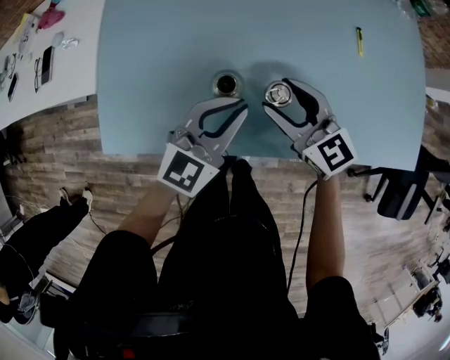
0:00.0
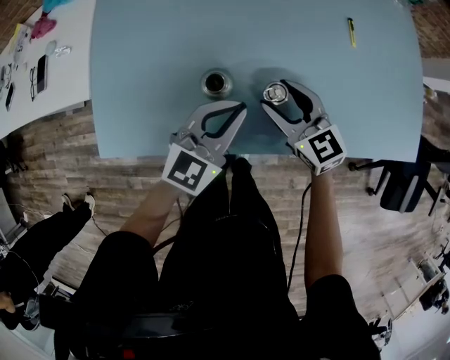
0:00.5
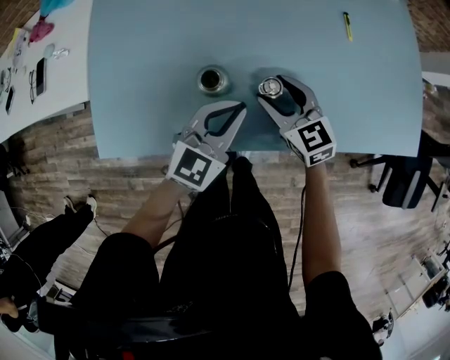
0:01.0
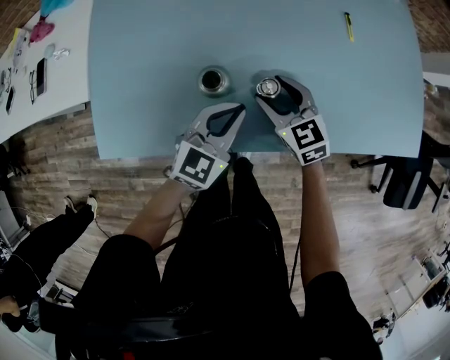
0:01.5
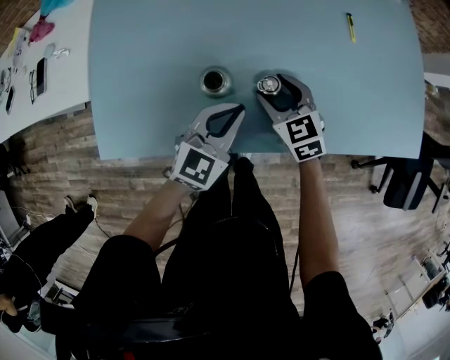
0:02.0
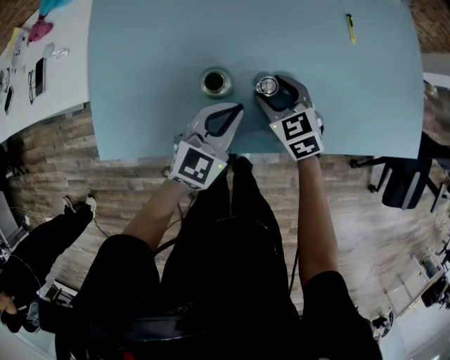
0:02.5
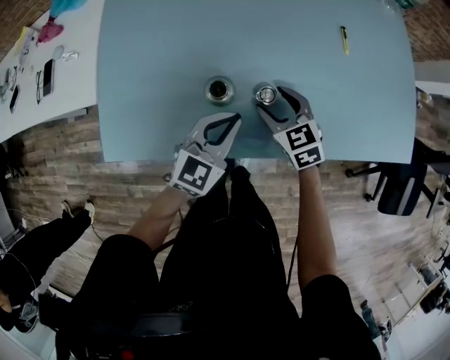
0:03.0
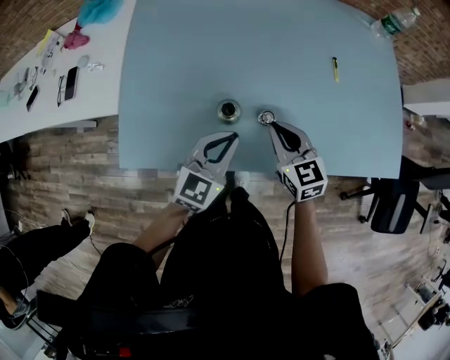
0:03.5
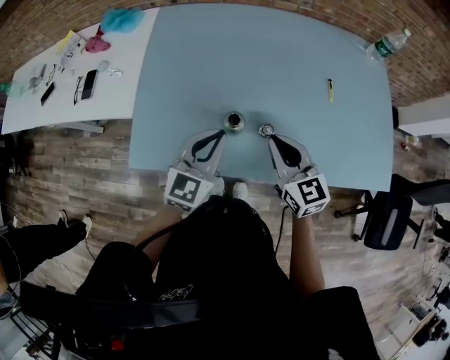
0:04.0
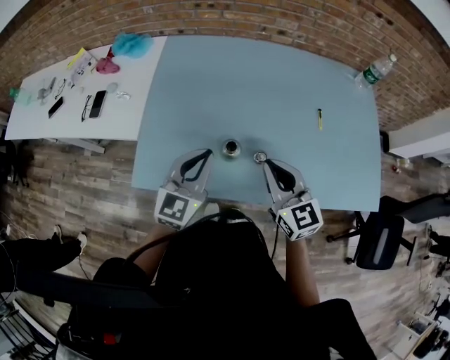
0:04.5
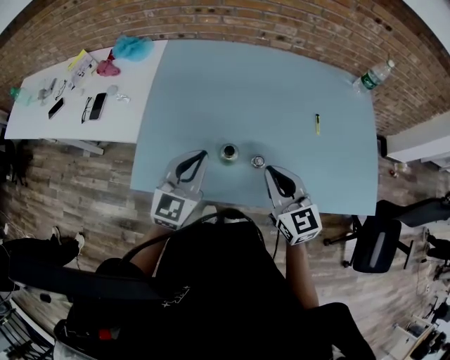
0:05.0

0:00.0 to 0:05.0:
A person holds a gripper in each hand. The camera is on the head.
0:00.0 to 0:02.5: The left gripper heads downward, covering approximately 5 cm; the right gripper goes approximately 10 cm downward, and rotates roughly 30 degrees.
0:02.5 to 0:05.0: The left gripper travels upward and to the left by roughly 20 cm, and turns by about 20 degrees; the right gripper travels upward by about 25 cm, tips its fingers upward by about 30 degrees, and closes its fingers.

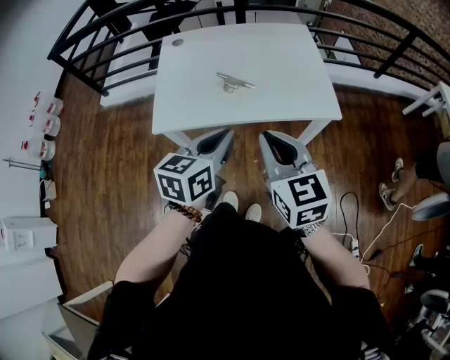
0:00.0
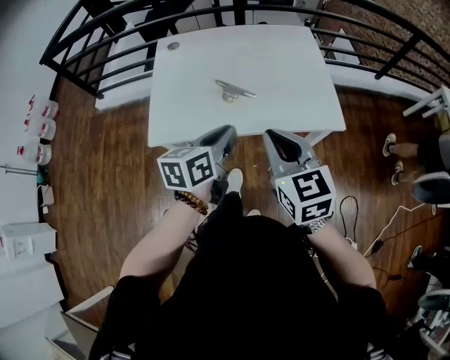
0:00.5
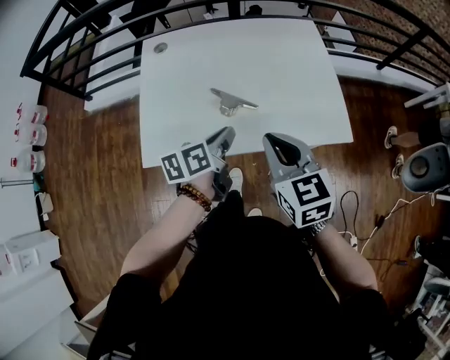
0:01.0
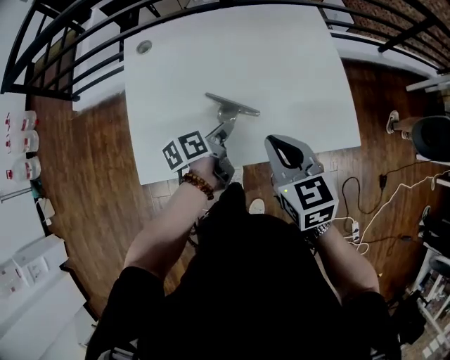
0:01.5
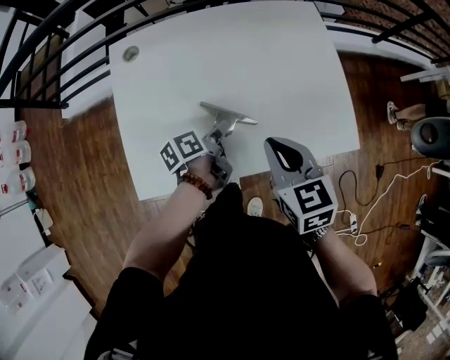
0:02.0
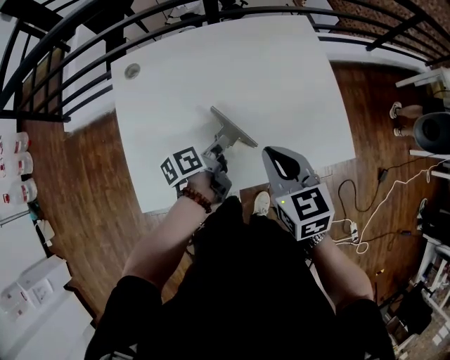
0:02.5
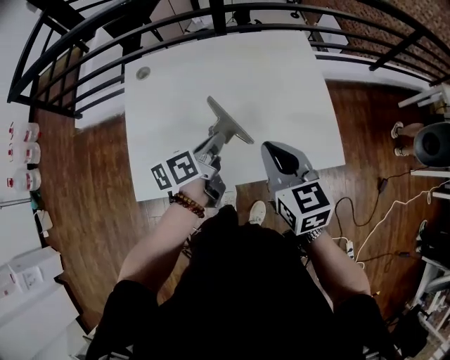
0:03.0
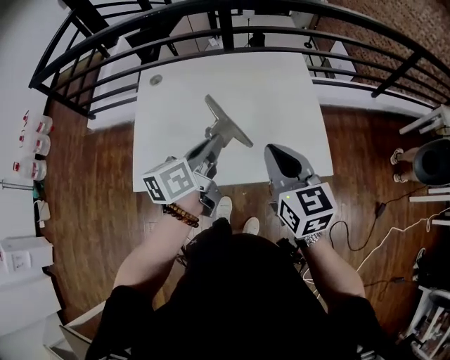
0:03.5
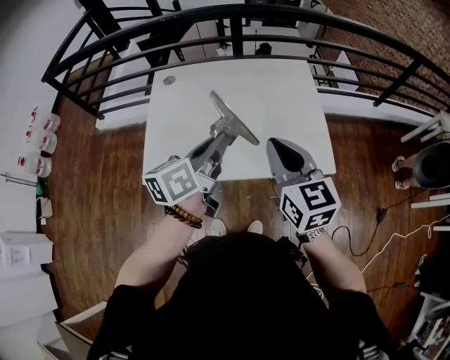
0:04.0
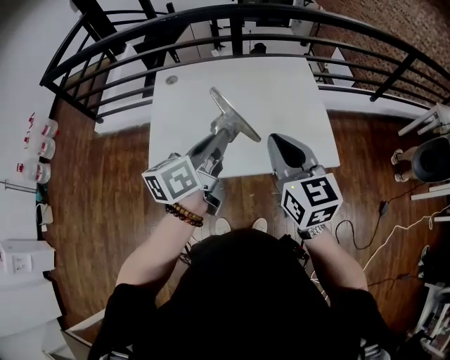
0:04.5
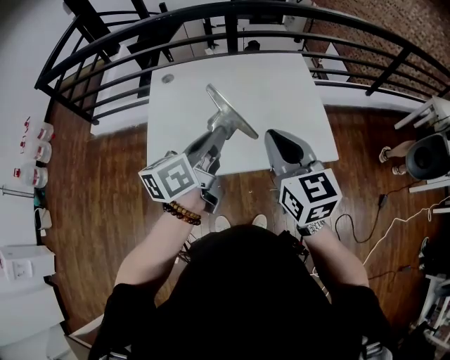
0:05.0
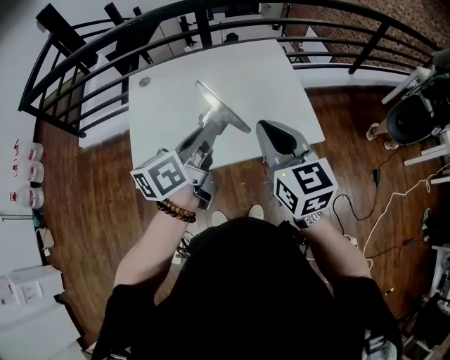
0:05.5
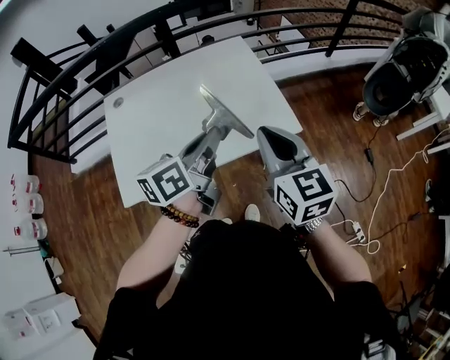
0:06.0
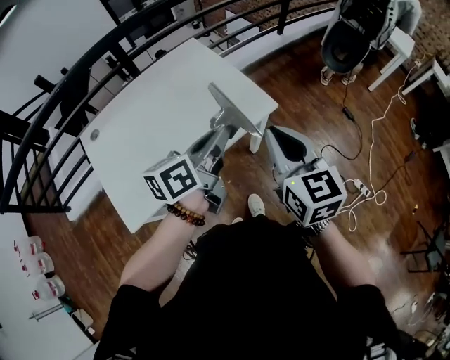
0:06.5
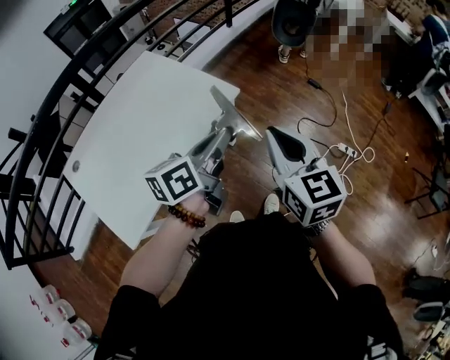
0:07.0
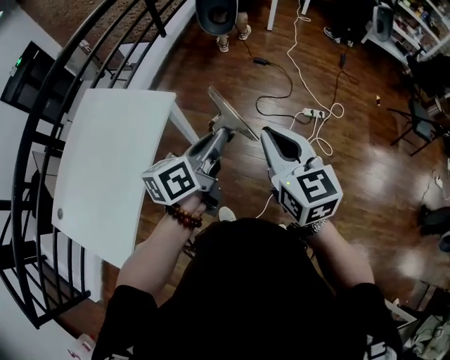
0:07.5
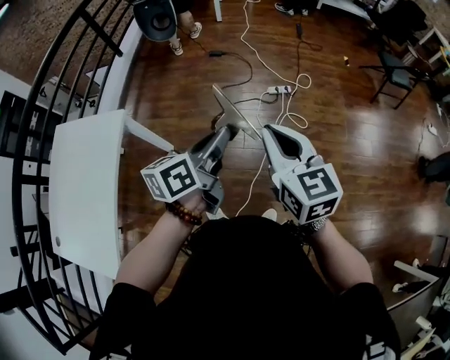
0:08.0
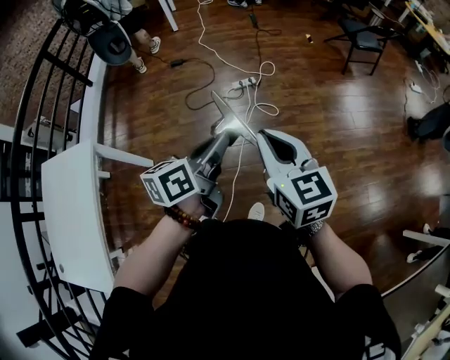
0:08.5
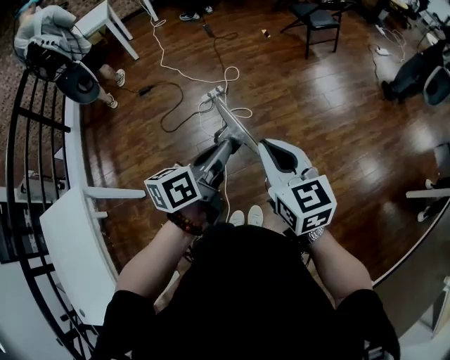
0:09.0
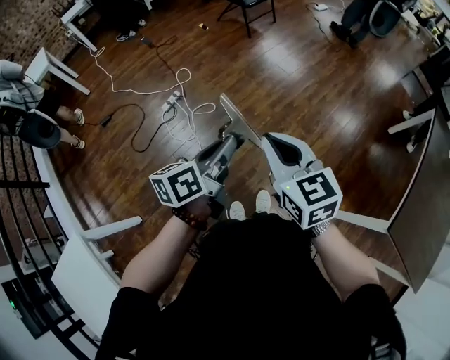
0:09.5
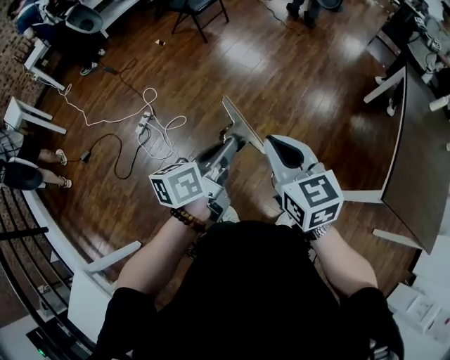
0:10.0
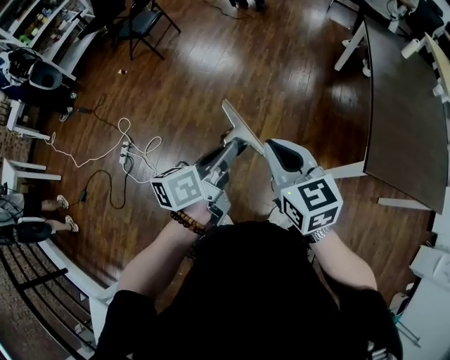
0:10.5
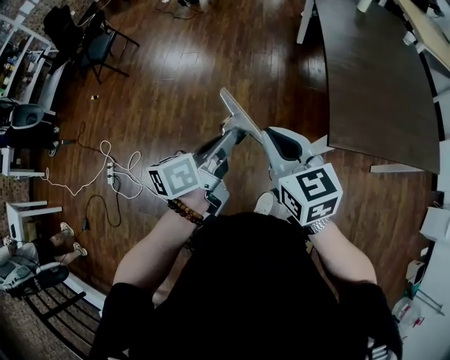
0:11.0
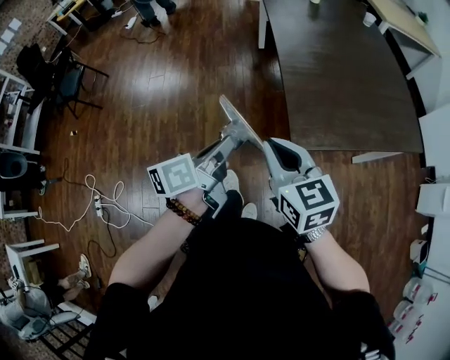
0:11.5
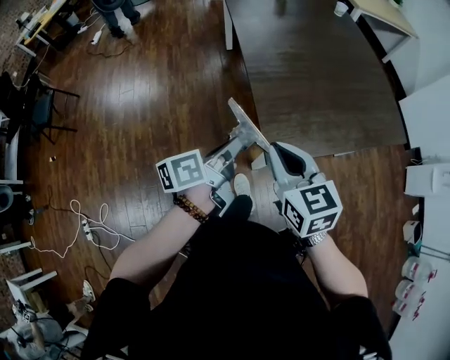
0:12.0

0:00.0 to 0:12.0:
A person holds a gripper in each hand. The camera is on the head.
0:00.0 to 0:02.0: The two grippers go roughly 35 cm forward and downward. The left gripper rotates around the line of its fingers by approximately 60 degrees, counterclockwise from behind. The right gripper changes its angle by about 20 degrees.
0:02.0 to 0:04.0: The right gripper travels upward, backward and to the right by about 20 cm, and swivels approximately 20 degrees. Meanwhile the left gripper travels upward by about 30 cm, and changes its angle by roughly 40 degrees.
0:04.0 to 0:06.0: Both grippers travel together to the right, roughly 10 cm.
0:06.0 to 0:08.0: Both grippers are carried roughly 50 cm. The right gripper changes its angle by roughly 70 degrees. The left gripper turns by about 70 degrees.
0:08.0 to 0:10.0: The left gripper ends up some 40 cm from where it was, and rotates roughly 60 degrees. Meanwhile the right gripper shifts by some 40 cm, and rotates roughly 60 degrees.
0:10.0 to 0:12.0: The pair of grippers is taken approximately 70 cm. The right gripper turns by some 50 degrees; the left gripper swivels roughly 50 degrees.

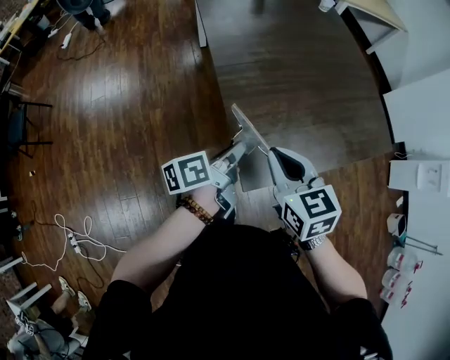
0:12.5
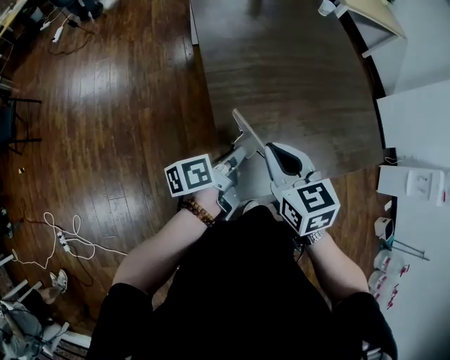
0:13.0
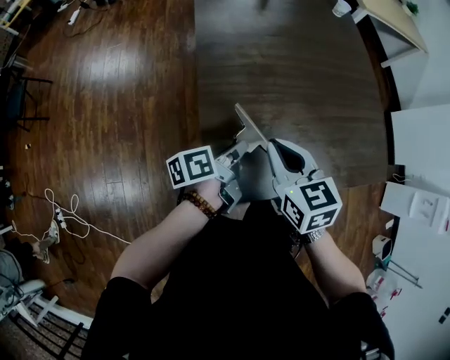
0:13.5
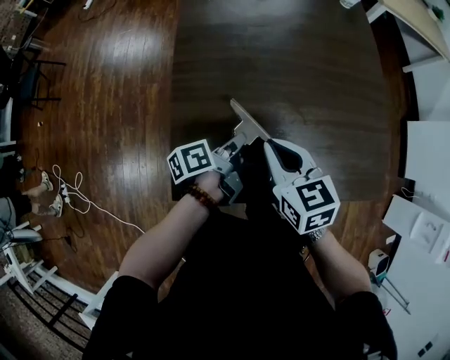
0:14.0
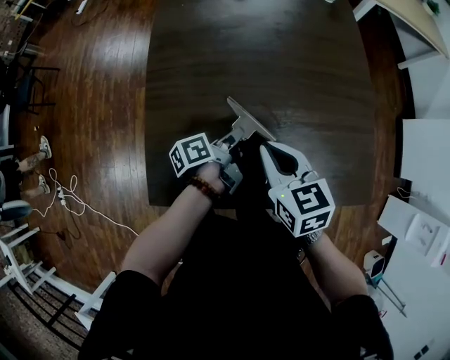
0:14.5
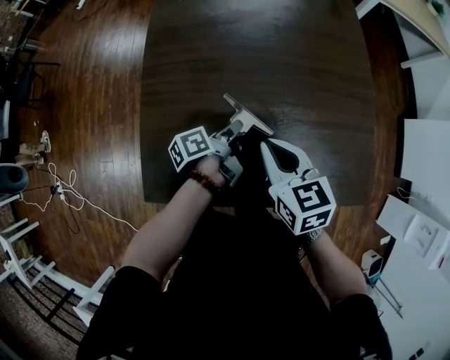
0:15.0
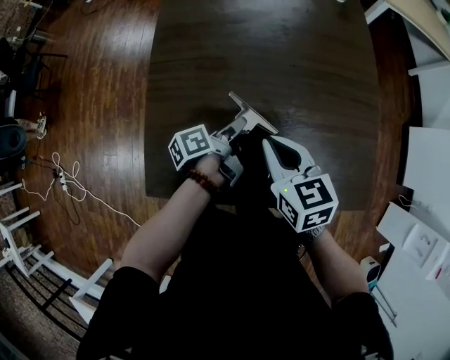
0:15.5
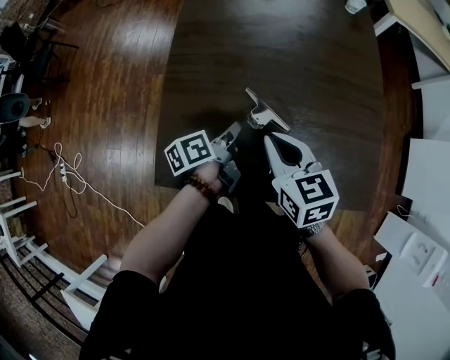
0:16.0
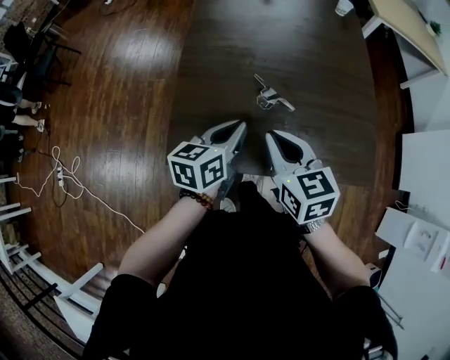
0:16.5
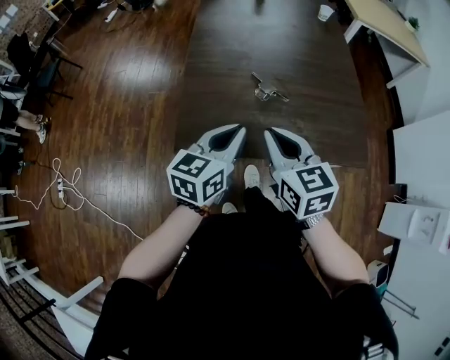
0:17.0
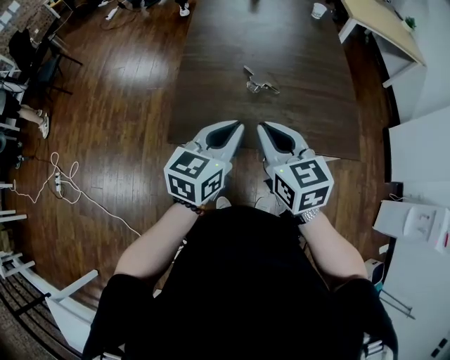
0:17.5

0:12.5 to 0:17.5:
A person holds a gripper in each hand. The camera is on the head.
0:12.5 to 0:15.0: The left gripper travels to the right, forward and downward by some 35 cm, and changes its angle by some 30 degrees. The right gripper goes roughly 35 cm to the right and forward.
0:15.0 to 0:17.5: Both grippers travel together backward and upward, approximately 30 cm. The left gripper rolls clockwise, seen from behind, by some 70 degrees, and opens and closes again.

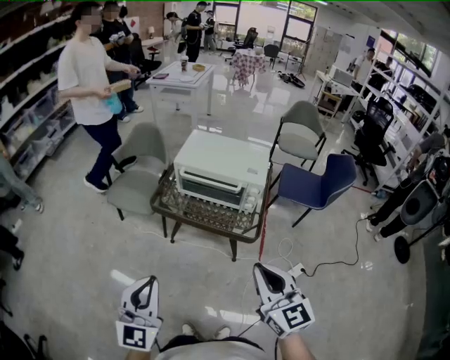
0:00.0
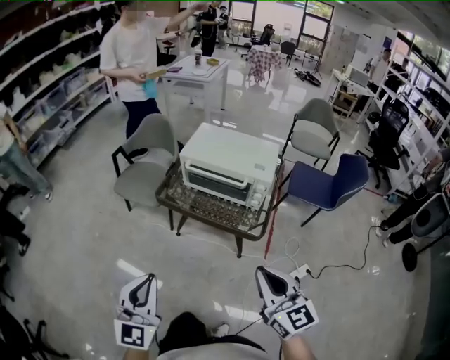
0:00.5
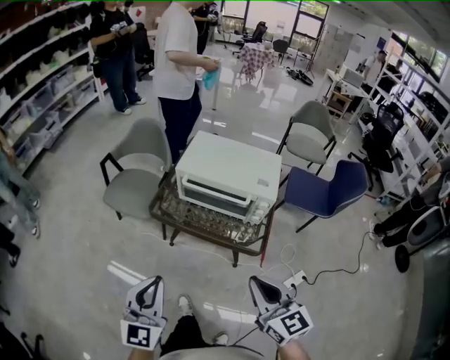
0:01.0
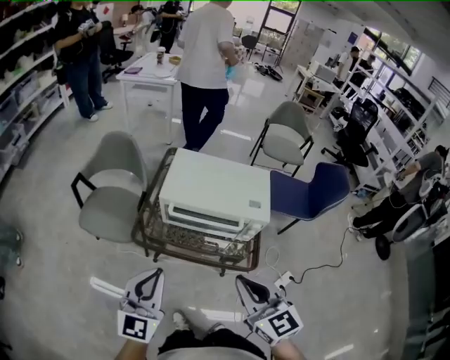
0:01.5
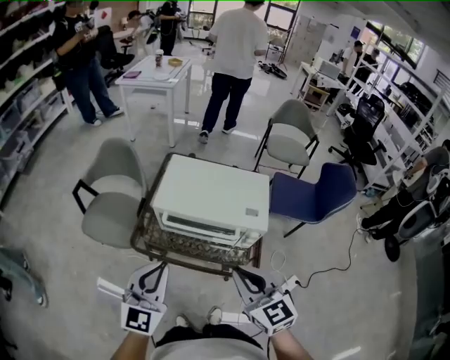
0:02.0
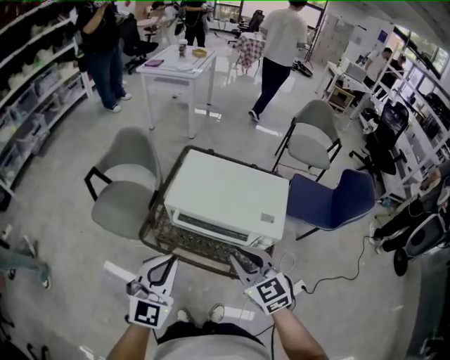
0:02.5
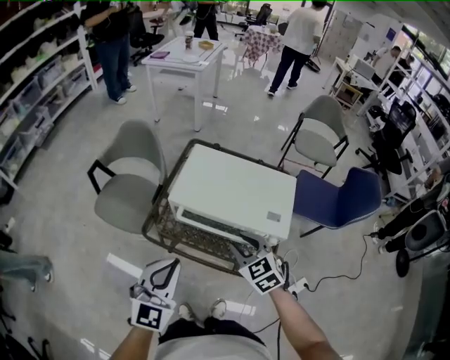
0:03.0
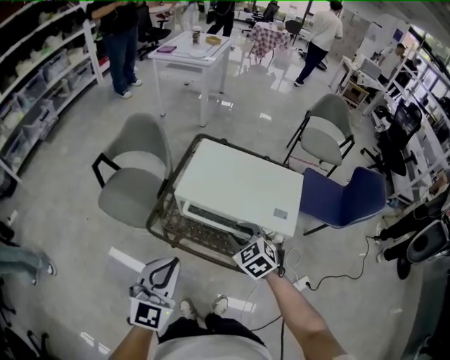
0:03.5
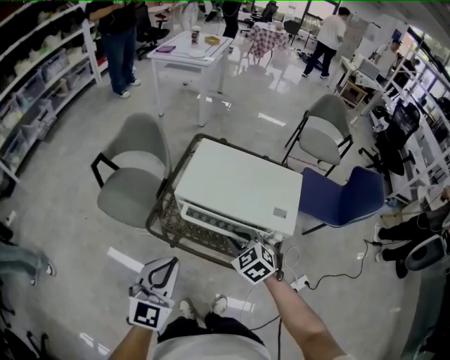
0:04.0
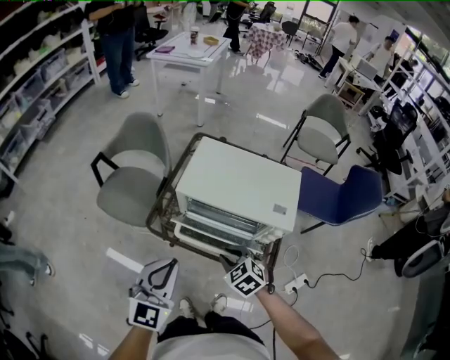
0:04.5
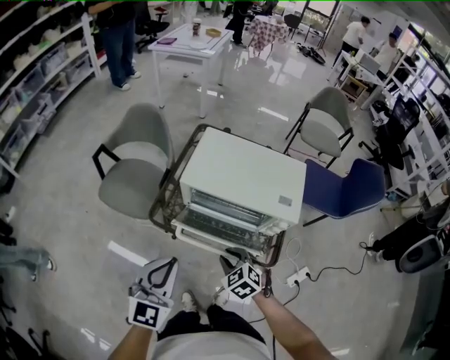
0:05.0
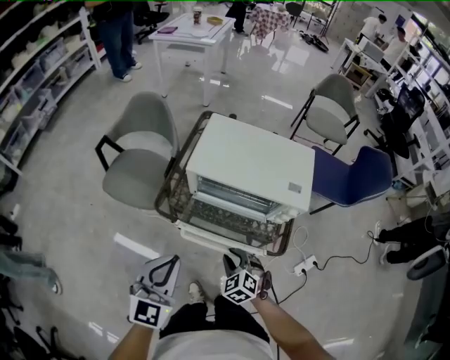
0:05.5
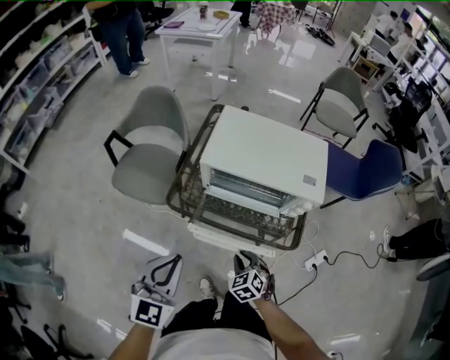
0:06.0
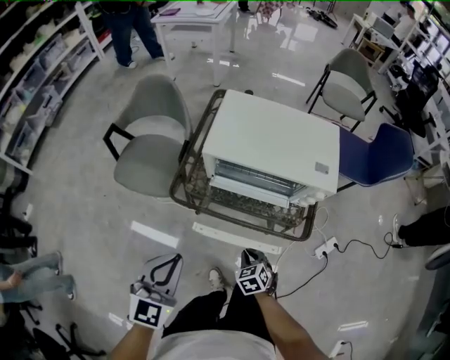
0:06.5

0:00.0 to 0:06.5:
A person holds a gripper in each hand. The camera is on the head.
0:00.0 to 0:02.0: The grippers both shift forward by about 30 cm.
0:02.0 to 0:04.5: The right gripper goes about 20 cm downward and forward, and points its fingers roughly 40 degrees further downward.
0:04.5 to 0:06.5: The right gripper heads downward and backward, covering about 20 cm, and swivels some 30 degrees. The left gripper is displaced to the left and downward by approximately 10 cm.
